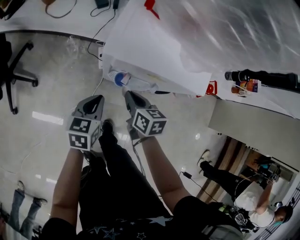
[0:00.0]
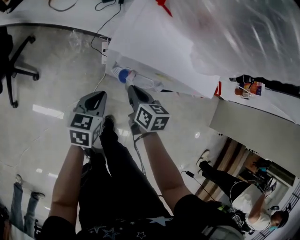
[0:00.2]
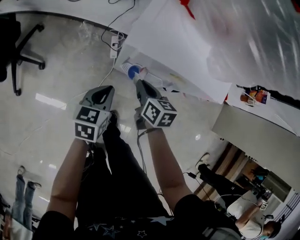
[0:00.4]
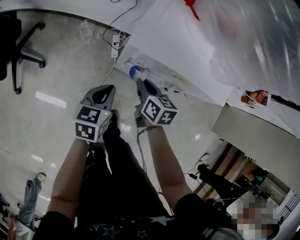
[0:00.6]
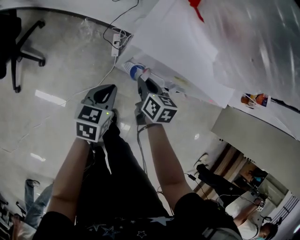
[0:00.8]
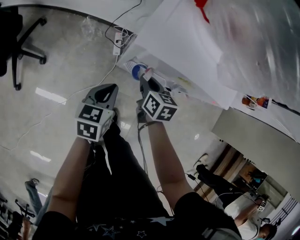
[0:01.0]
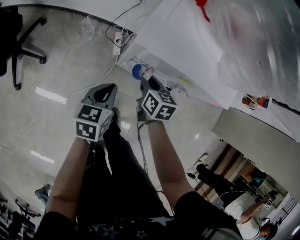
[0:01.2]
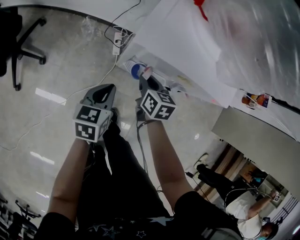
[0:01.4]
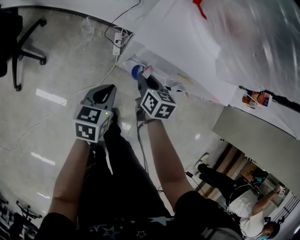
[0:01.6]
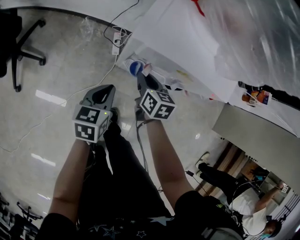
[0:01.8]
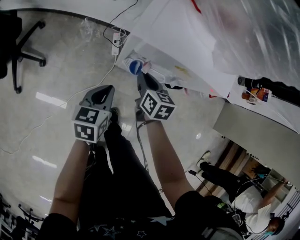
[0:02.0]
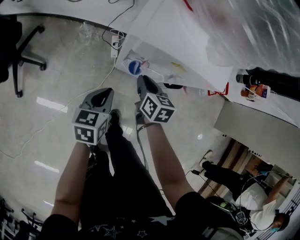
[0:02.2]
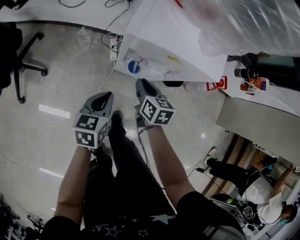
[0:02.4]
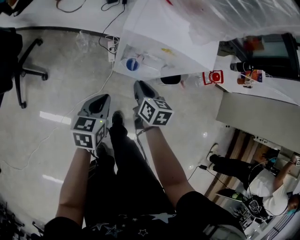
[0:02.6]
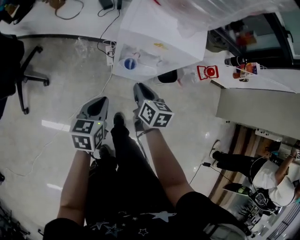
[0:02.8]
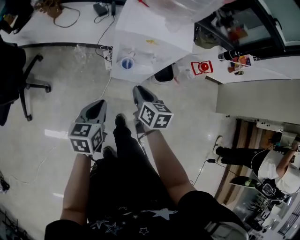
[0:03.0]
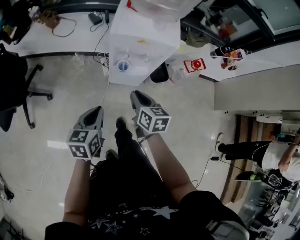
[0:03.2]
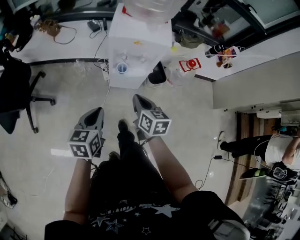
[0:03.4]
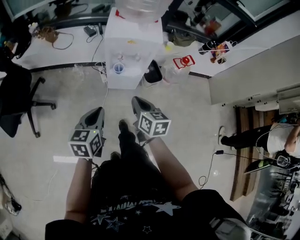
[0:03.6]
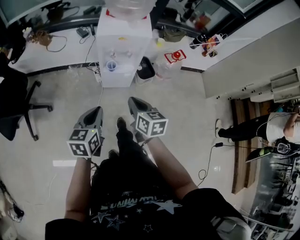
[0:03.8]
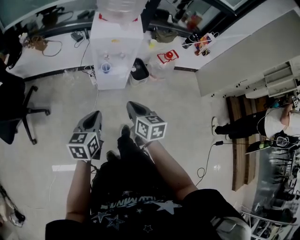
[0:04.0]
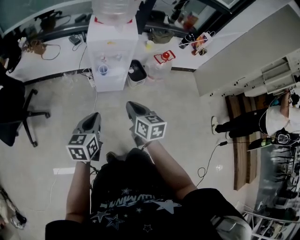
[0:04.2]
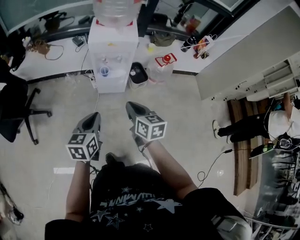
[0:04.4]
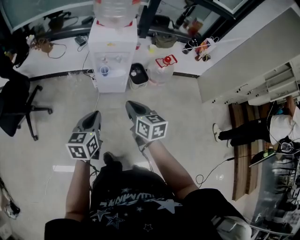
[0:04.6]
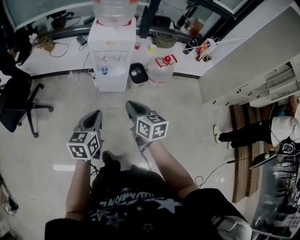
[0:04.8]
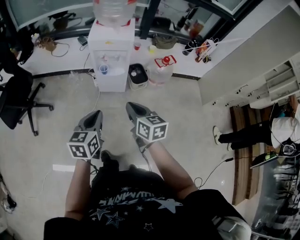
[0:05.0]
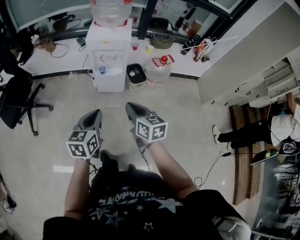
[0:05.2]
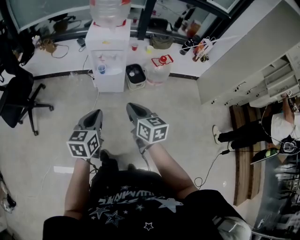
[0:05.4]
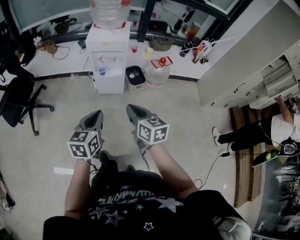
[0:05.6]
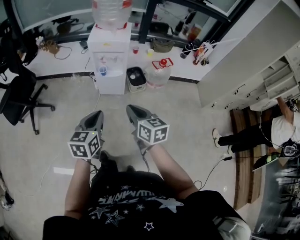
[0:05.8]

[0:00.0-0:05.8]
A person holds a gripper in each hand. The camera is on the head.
0:00.0 to 0:01.4: The right gripper is displaced downward by some 5 cm.
0:01.4 to 0:02.8: Both grippers move backward and upward, some 15 cm.
0:02.8 to 0:04.4: The grippers both shift backward and upward by about 35 cm.
0:04.4 to 0:05.8: The right gripper heads backward and to the right, covering some 15 cm. Meanwhile the left gripper is displaced backward, to the right and upward by about 15 cm.

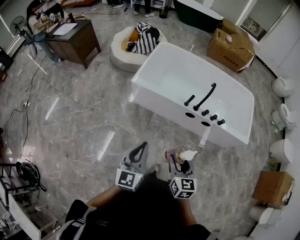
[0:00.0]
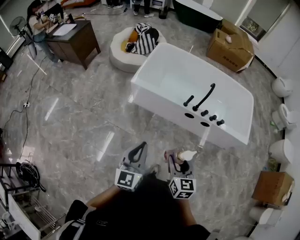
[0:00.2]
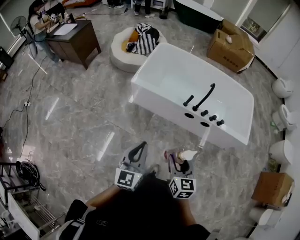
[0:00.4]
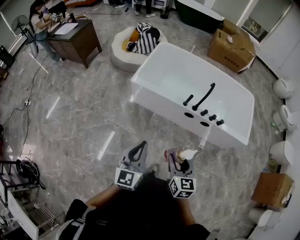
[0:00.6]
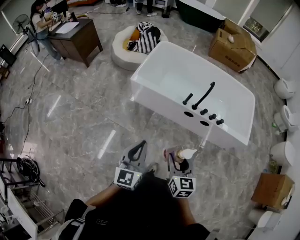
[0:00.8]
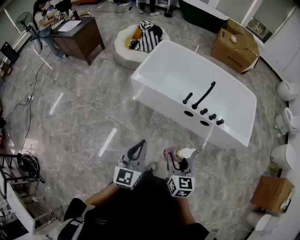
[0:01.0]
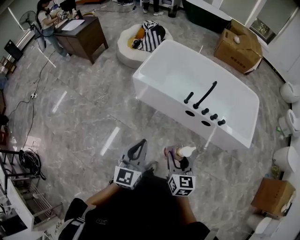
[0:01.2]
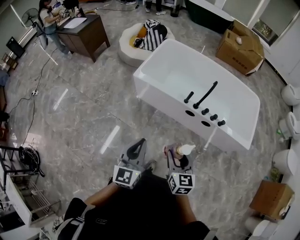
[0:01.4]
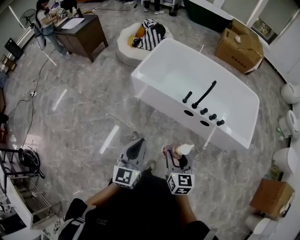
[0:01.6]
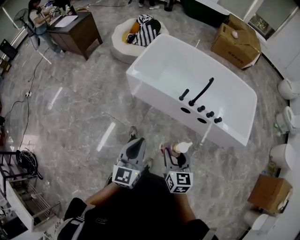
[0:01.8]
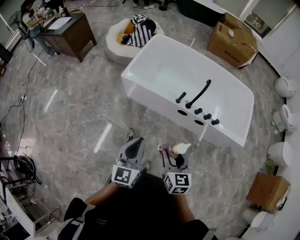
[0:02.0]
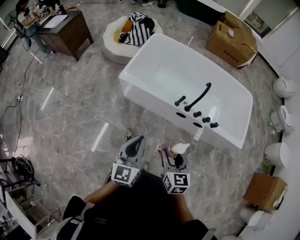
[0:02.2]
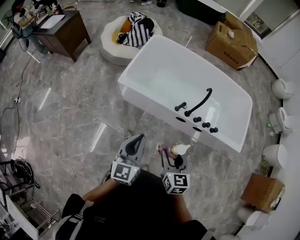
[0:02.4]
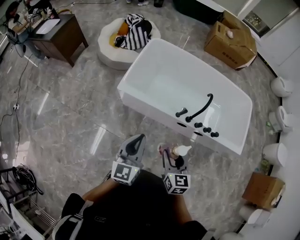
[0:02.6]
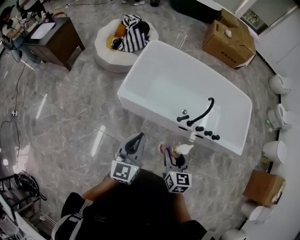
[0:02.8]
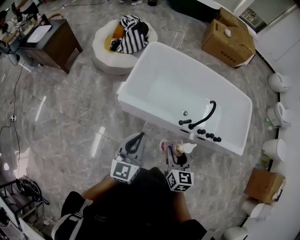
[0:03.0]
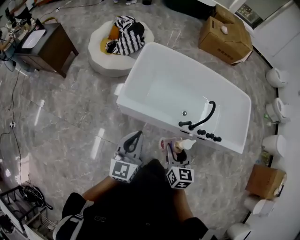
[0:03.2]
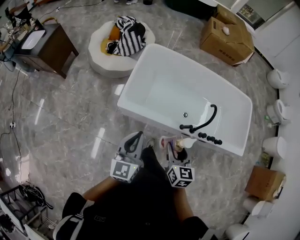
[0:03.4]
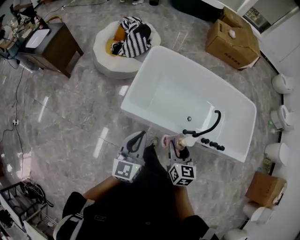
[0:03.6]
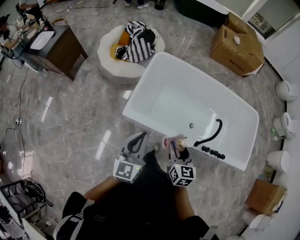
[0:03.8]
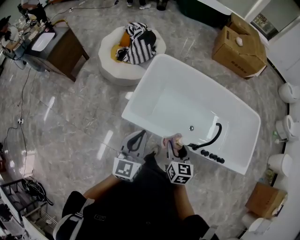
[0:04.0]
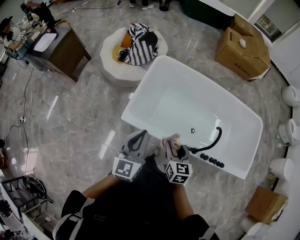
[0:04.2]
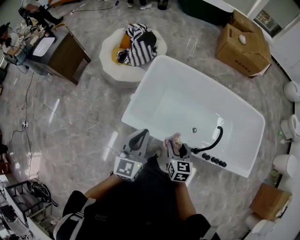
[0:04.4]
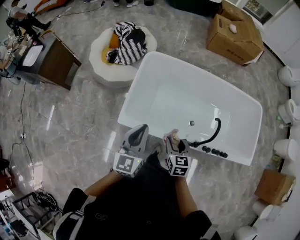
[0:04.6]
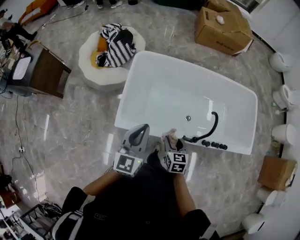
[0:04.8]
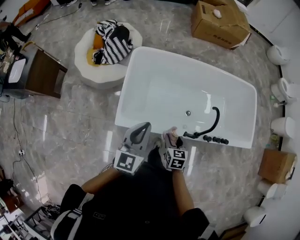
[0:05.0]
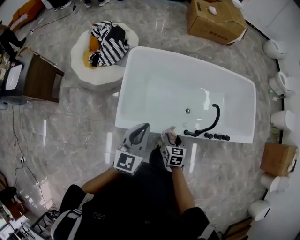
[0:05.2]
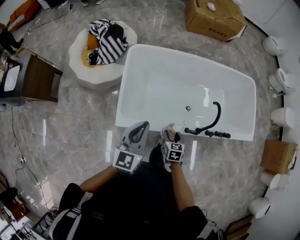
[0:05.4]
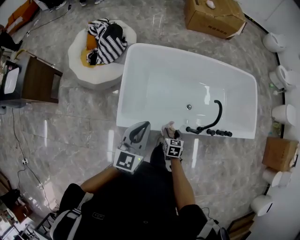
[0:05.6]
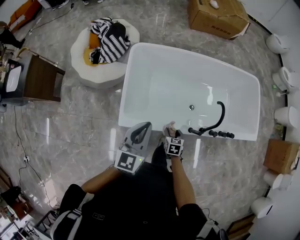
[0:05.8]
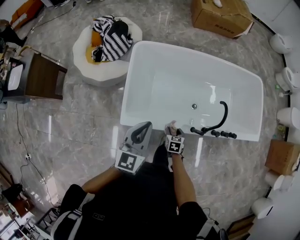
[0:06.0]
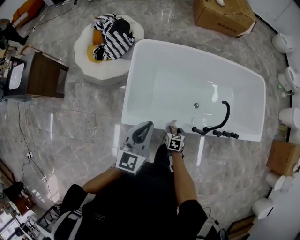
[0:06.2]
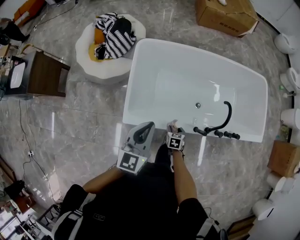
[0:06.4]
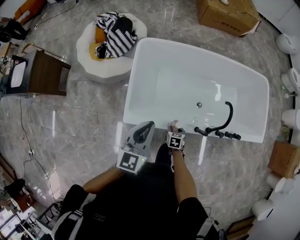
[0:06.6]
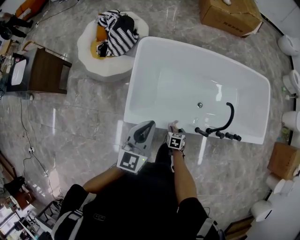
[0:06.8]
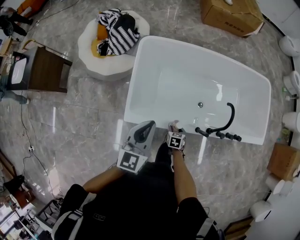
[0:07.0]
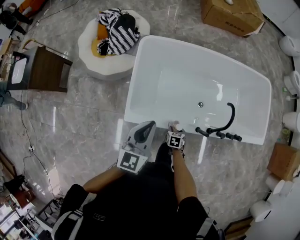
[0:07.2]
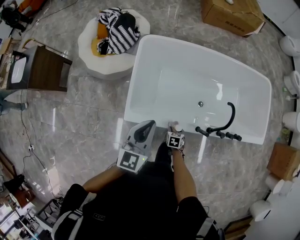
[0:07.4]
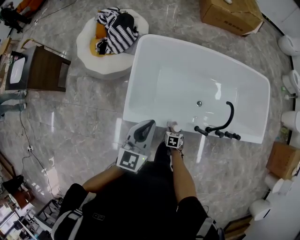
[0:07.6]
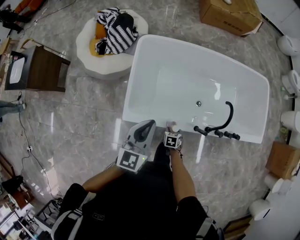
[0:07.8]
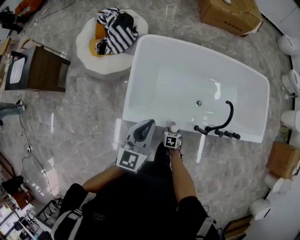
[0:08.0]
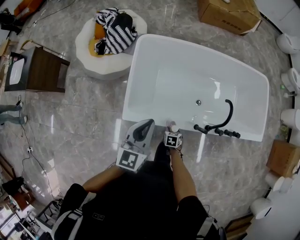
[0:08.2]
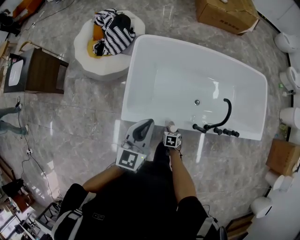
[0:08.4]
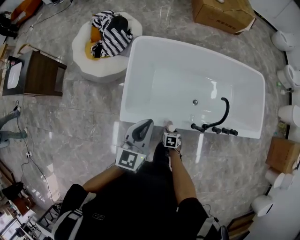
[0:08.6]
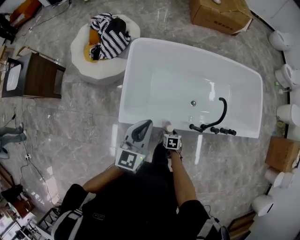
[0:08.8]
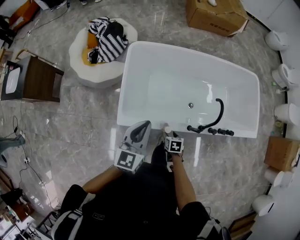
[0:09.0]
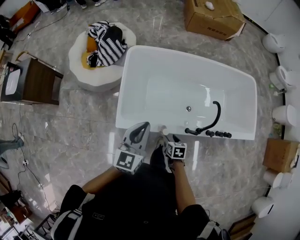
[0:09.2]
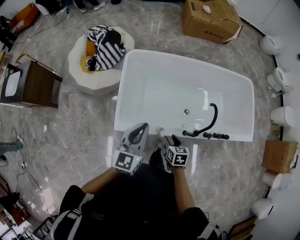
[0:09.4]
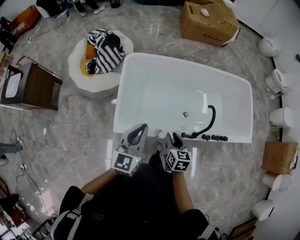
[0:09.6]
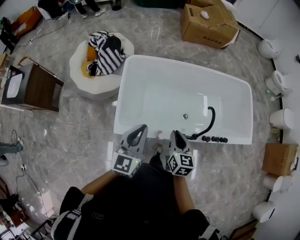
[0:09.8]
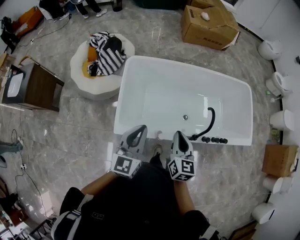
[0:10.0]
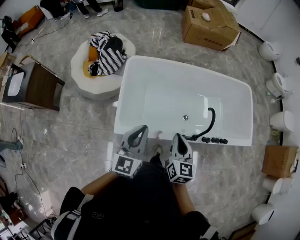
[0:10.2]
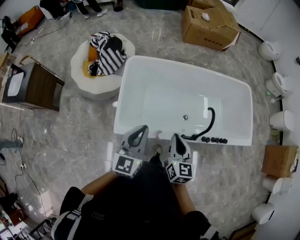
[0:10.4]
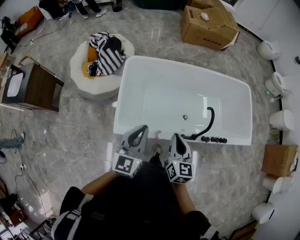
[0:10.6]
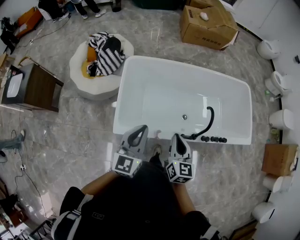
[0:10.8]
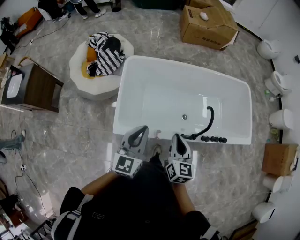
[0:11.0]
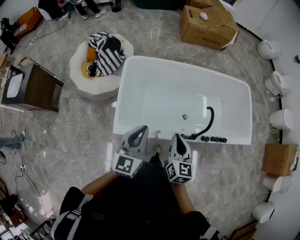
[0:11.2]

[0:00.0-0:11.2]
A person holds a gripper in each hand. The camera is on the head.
0:00.0 to 0:01.6: Both grippers move to the right, about 10 cm.
0:01.6 to 0:03.2: The two grippers go some 40 cm forward.
0:03.2 to 0:04.8: The left gripper goes approximately 25 cm forward. The right gripper goes some 25 cm forward and downward.
0:04.8 to 0:06.4: The left gripper changes place by approximately 5 cm, while the right gripper moves downward, about 20 cm, and rotates some 20 degrees.
0:06.4 to 0:08.0: The right gripper shifts by about 5 cm.
0:08.0 to 0:09.6: The left gripper changes place by about 5 cm. The right gripper is displaced upward by some 30 cm, turns by approximately 30 degrees, and closes its fingers.
0:09.6 to 0:11.2: The right gripper heads upward, covering about 10 cm, turns by about 20 degrees, and closes up.

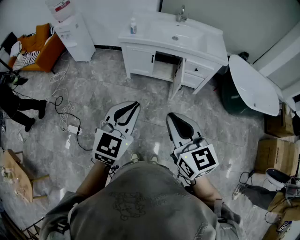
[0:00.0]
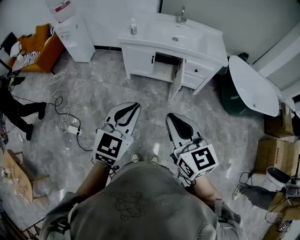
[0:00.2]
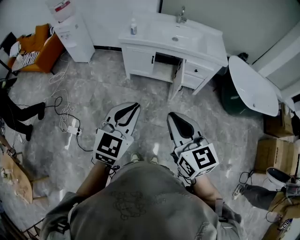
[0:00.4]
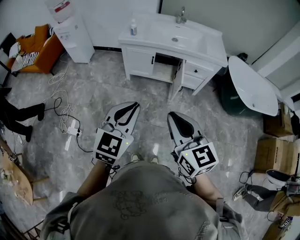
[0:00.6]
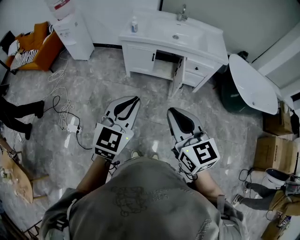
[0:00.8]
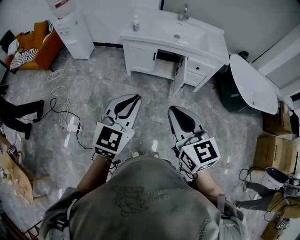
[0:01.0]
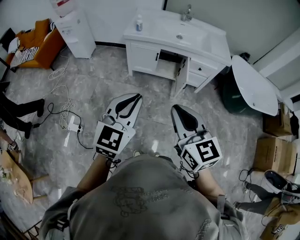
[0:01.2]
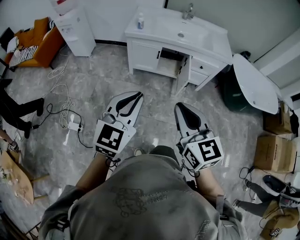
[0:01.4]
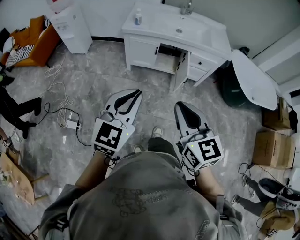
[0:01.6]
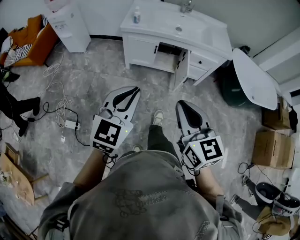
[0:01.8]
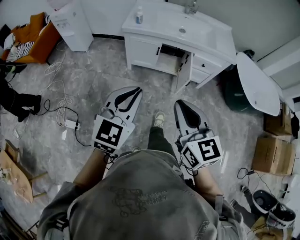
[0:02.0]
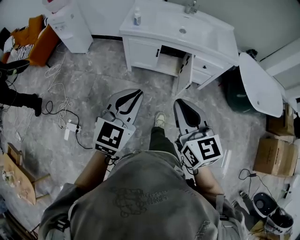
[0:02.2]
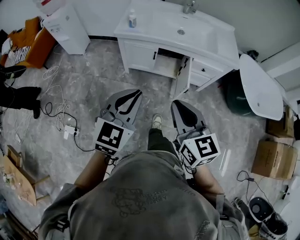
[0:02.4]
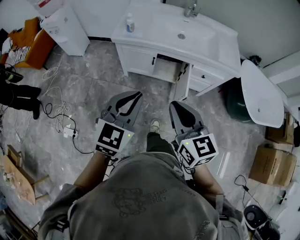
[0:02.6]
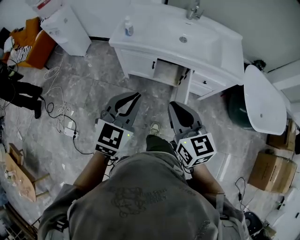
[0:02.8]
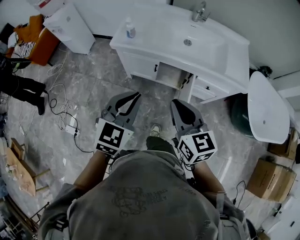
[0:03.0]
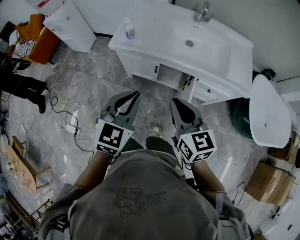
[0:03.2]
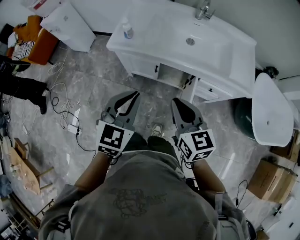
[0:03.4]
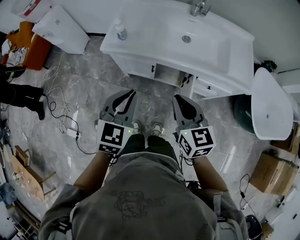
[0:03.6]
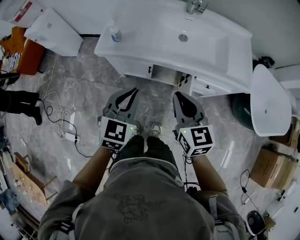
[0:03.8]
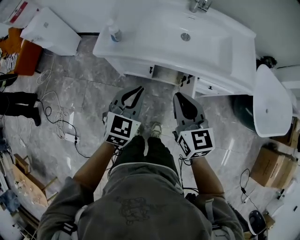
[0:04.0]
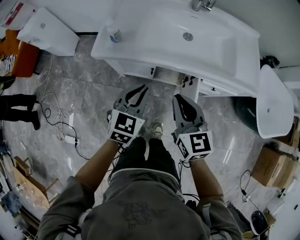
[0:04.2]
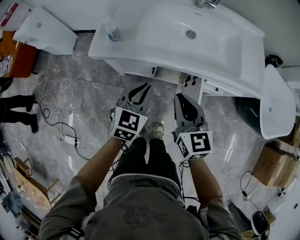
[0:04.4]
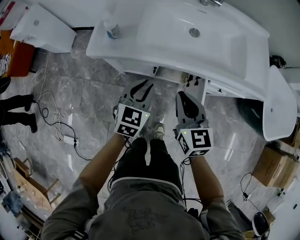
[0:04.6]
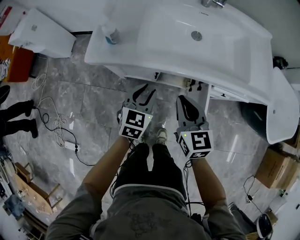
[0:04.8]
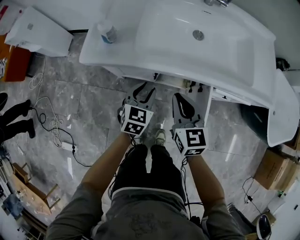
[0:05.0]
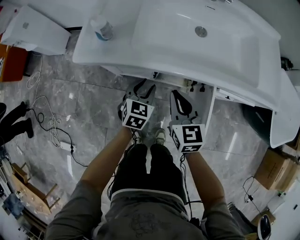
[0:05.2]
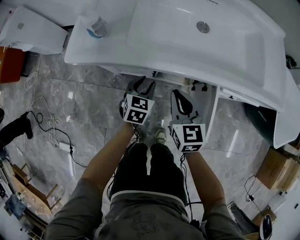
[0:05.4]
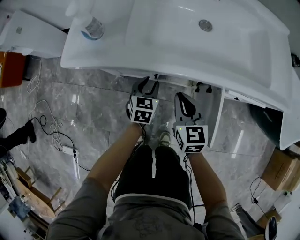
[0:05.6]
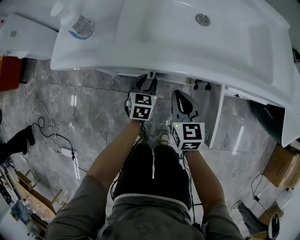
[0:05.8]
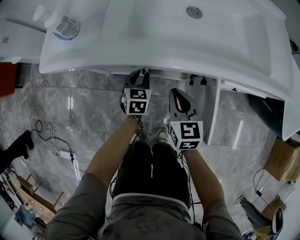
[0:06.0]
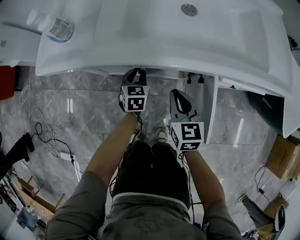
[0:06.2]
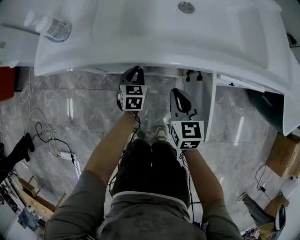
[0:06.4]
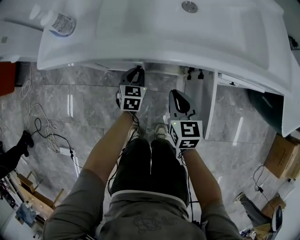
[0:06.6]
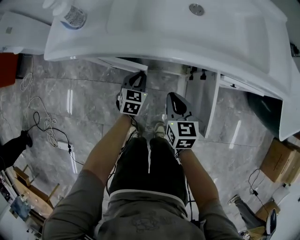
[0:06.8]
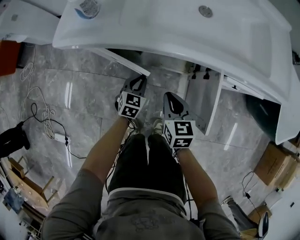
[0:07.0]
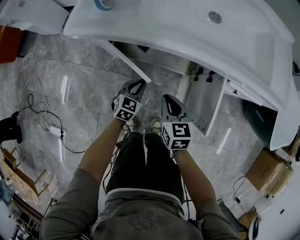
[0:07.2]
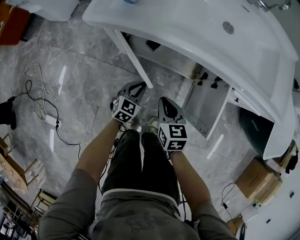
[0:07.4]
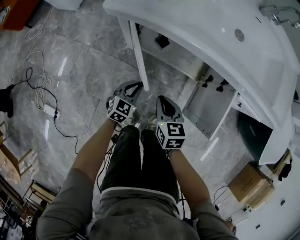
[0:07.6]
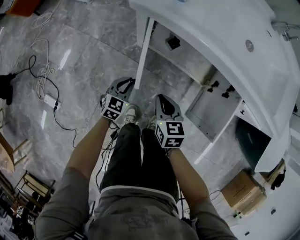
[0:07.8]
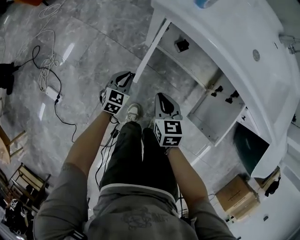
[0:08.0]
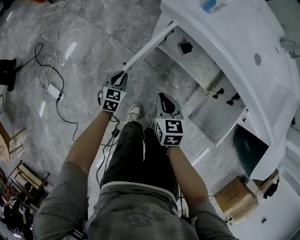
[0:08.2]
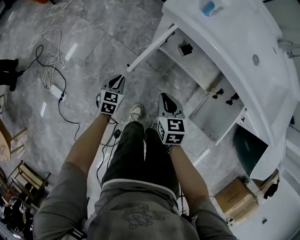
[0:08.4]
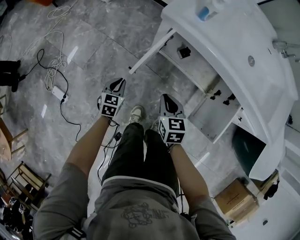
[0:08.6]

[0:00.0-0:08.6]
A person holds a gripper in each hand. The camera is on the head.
0:00.0 to 0:01.4: Both grippers travel together to the left, about 5 cm.
0:01.4 to 0:02.8: Both grippers move forward, some 30 cm.
0:02.8 to 0:04.4: Both grippers travel together forward and downward, approximately 30 cm.
0:04.4 to 0:05.8: The grippers both shift downward by about 30 cm. The left gripper opens its fingers.
0:05.8 to 0:07.2: Both grippers move backward, about 10 cm. The left gripper closes up.
0:07.2 to 0:08.6: The left gripper moves roughly 30 cm, and changes its angle by roughly 30 degrees, while the right gripper moves about 20 cm.
